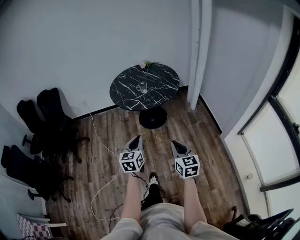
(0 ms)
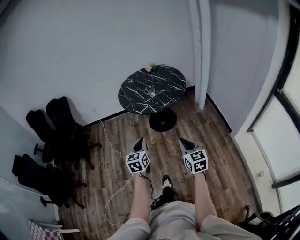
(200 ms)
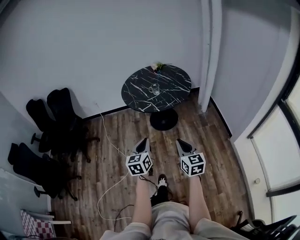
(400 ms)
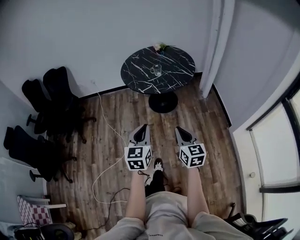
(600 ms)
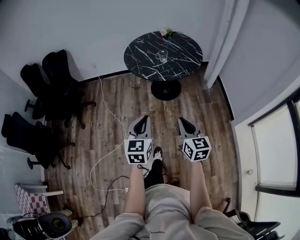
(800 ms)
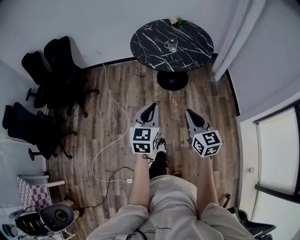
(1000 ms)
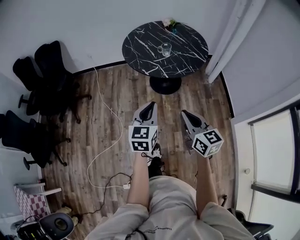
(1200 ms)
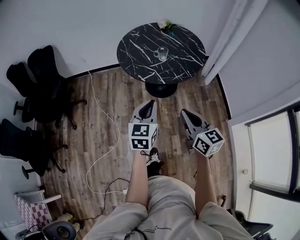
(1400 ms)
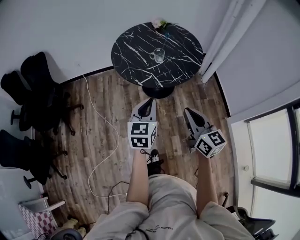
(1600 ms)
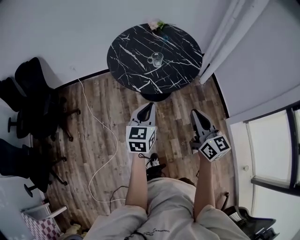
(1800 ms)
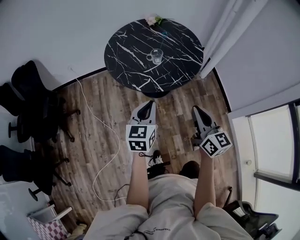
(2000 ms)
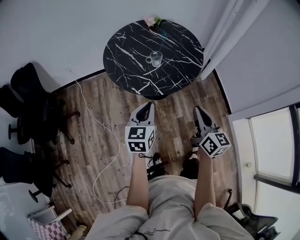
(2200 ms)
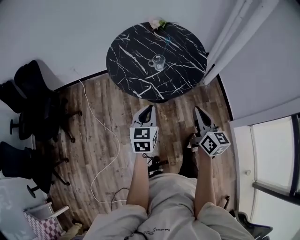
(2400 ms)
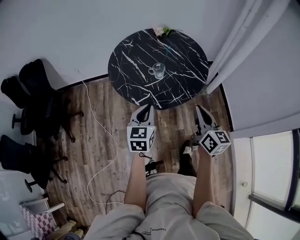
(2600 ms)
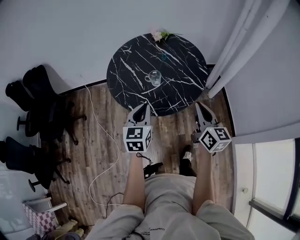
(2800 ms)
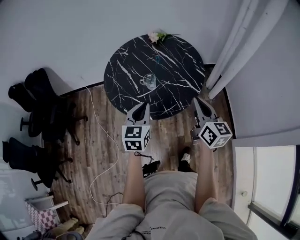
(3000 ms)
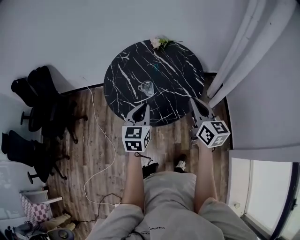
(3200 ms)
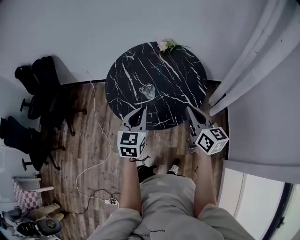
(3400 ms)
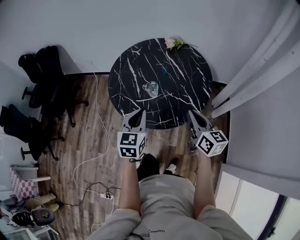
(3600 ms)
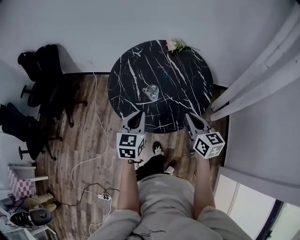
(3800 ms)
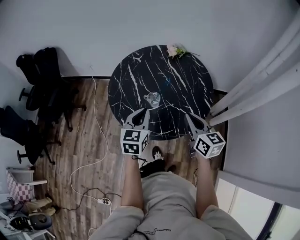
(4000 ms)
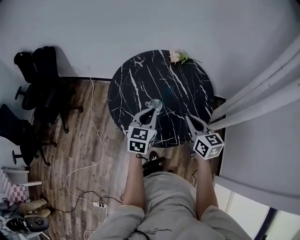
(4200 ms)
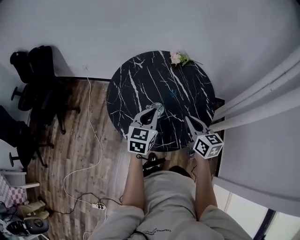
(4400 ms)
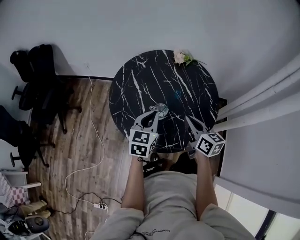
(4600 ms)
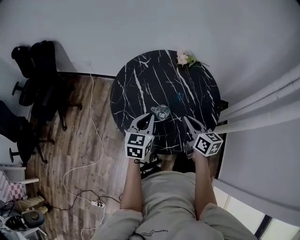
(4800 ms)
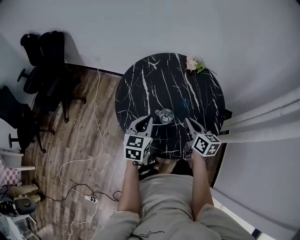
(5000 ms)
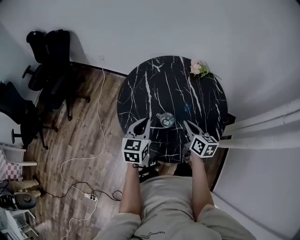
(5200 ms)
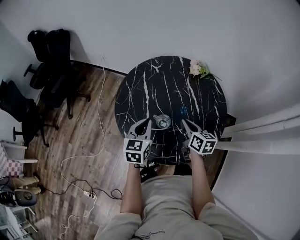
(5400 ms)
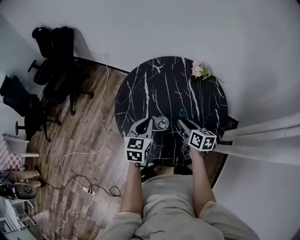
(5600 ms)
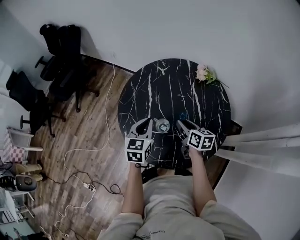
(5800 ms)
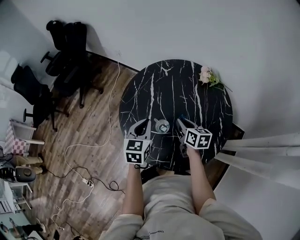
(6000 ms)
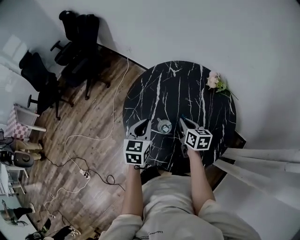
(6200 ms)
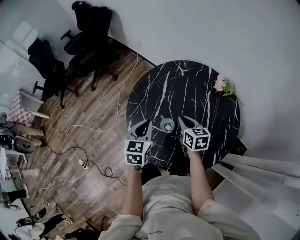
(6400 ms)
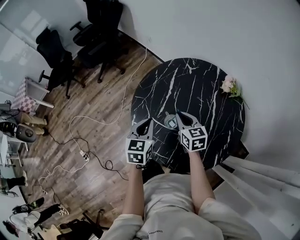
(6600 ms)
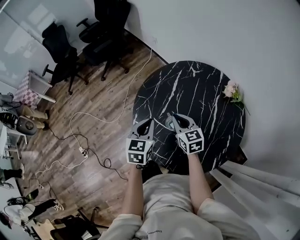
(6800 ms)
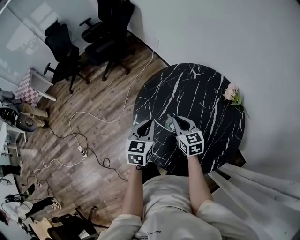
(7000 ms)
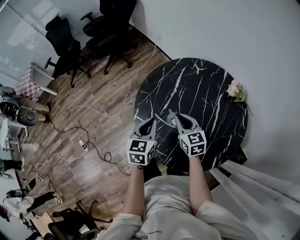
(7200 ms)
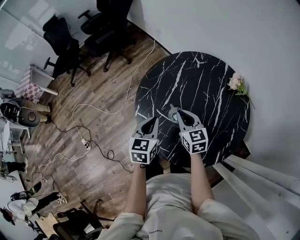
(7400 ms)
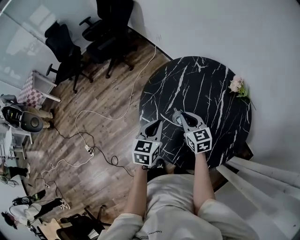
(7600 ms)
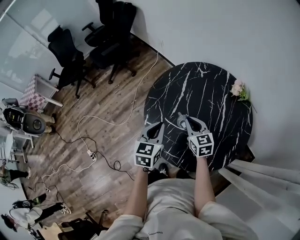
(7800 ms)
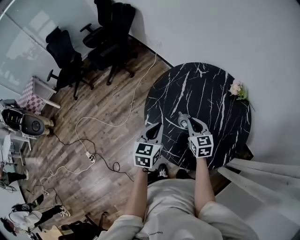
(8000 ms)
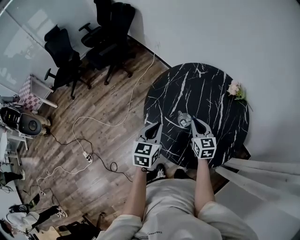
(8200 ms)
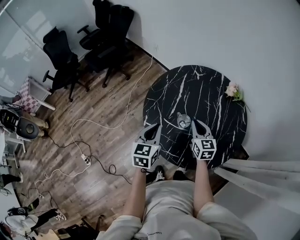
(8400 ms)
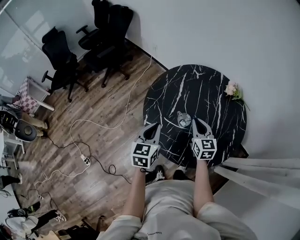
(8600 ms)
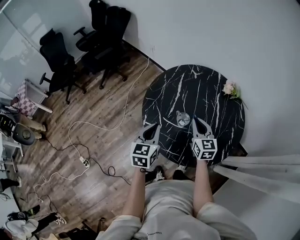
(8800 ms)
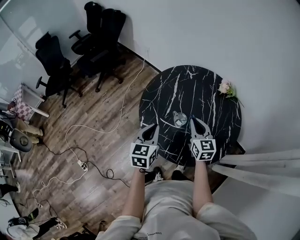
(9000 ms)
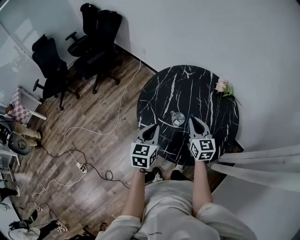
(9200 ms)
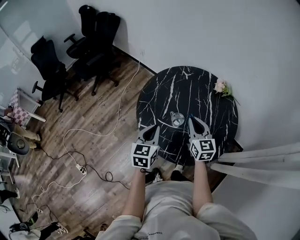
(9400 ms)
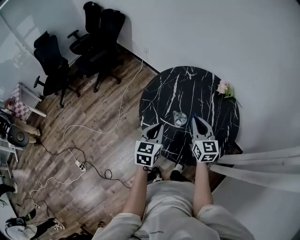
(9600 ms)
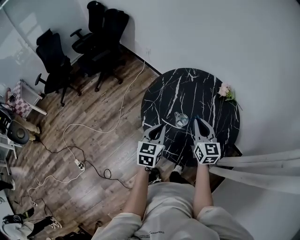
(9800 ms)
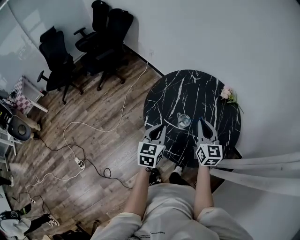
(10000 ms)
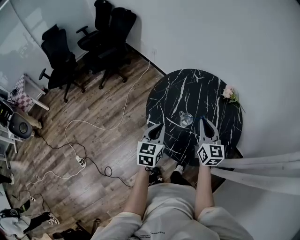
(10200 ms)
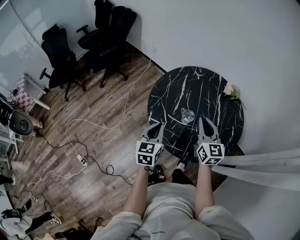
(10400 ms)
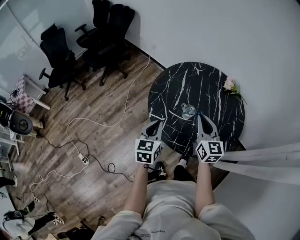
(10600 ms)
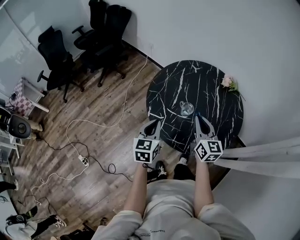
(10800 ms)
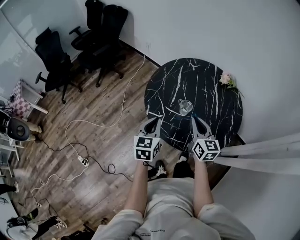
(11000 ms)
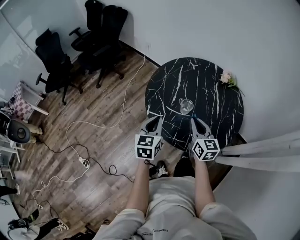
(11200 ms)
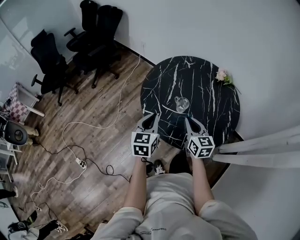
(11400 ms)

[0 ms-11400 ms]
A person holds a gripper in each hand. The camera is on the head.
0 ms to 1400 ms: Both grippers move forward, some 20 cm.
1400 ms to 2800 ms: The right gripper is displaced forward and to the right by approximately 35 cm. The left gripper is displaced forward by about 25 cm.
2800 ms to 4200 ms: The left gripper shifts some 20 cm forward and to the right. The right gripper shifts some 20 cm forward, and swivels approximately 30 degrees.
4200 ms to 5600 ms: The left gripper heads forward, covering approximately 10 cm, and turns by some 20 degrees; the right gripper shifts roughly 20 cm forward and downward, turns by about 30 degrees, and opens its fingers.
5600 ms to 7200 ms: The left gripper moves approximately 5 cm, and swivels about 30 degrees. Meanwhile the right gripper ends up approximately 10 cm from where it was, rolls counterclockwise, seen from behind, by roughly 40 degrees, and closes.
7200 ms to 8600 ms: The right gripper shifts by some 5 cm, and rotates roughly 20 degrees; the left gripper heads to the left, covering roughly 5 cm.
8600 ms to 10000 ms: The right gripper heads upward, covering approximately 10 cm.
10000 ms to 11400 ms: The right gripper travels downward and backward by some 10 cm. Meanwhile the left gripper ends up roughly 5 cm from where it was.

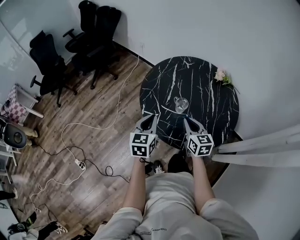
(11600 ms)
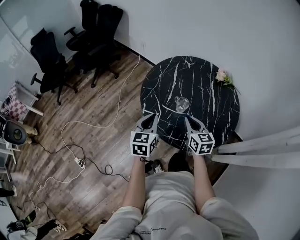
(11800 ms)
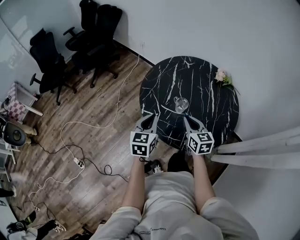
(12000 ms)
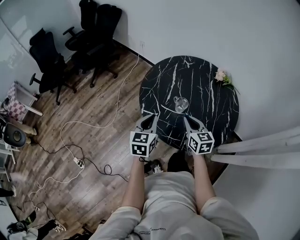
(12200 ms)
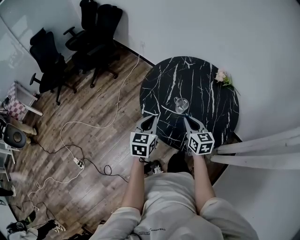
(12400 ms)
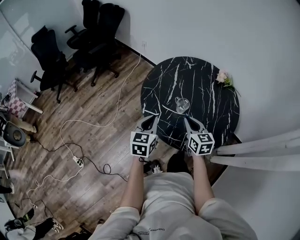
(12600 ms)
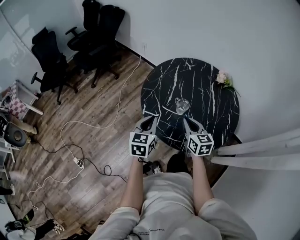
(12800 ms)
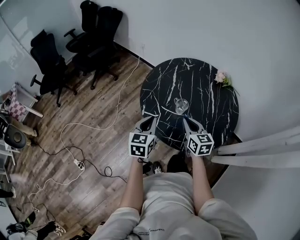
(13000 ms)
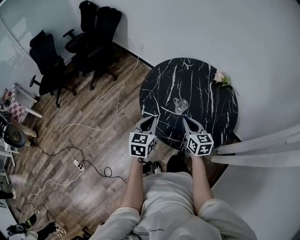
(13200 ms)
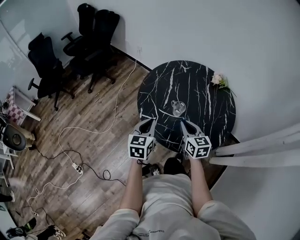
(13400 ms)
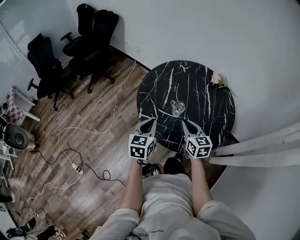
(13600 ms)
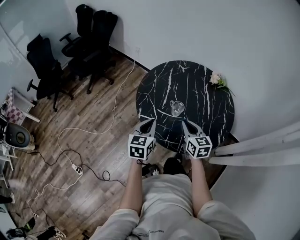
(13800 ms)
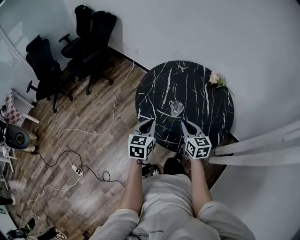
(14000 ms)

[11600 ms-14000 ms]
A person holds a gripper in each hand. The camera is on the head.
11600 ms to 12800 ms: The two grippers keep their place.
12800 ms to 14000 ms: The grippers move only a little.

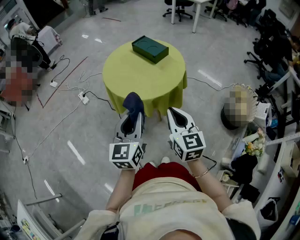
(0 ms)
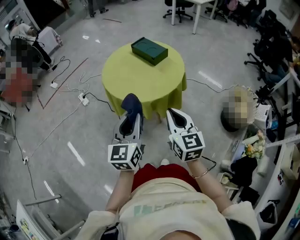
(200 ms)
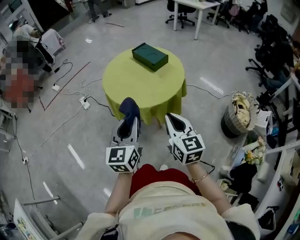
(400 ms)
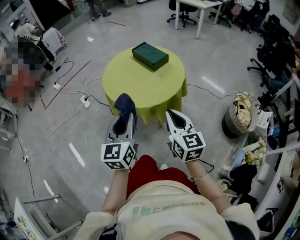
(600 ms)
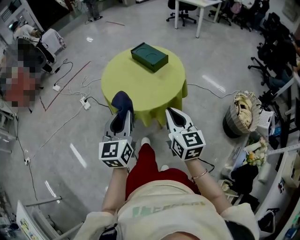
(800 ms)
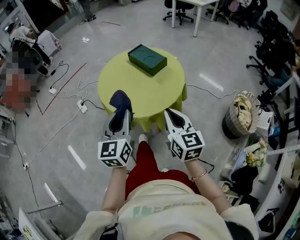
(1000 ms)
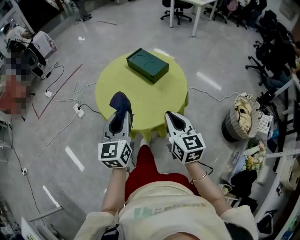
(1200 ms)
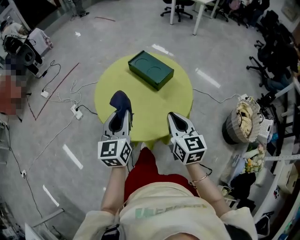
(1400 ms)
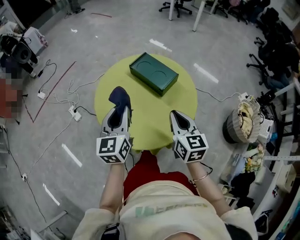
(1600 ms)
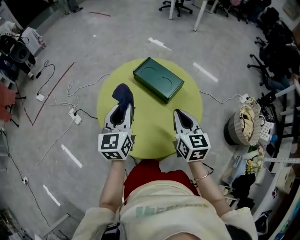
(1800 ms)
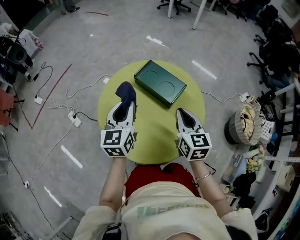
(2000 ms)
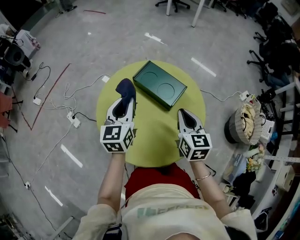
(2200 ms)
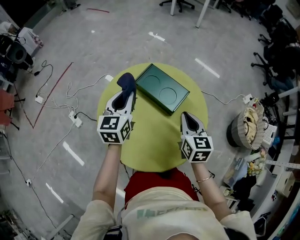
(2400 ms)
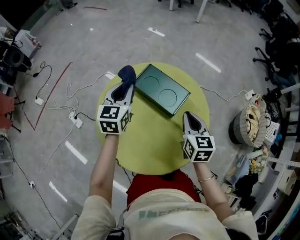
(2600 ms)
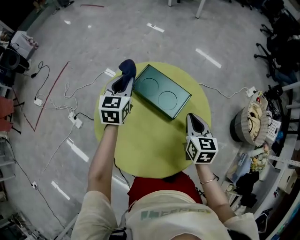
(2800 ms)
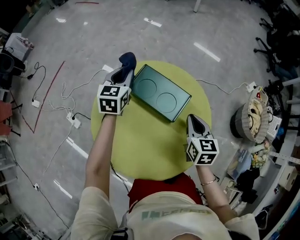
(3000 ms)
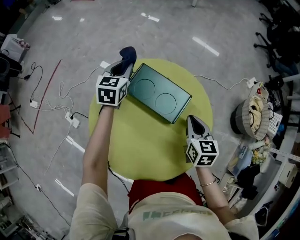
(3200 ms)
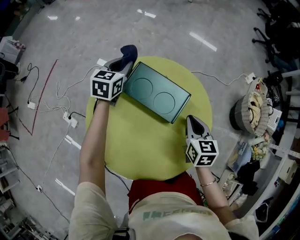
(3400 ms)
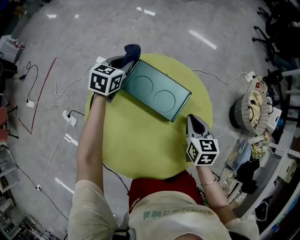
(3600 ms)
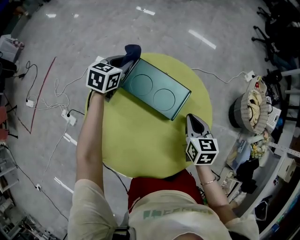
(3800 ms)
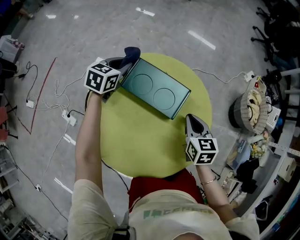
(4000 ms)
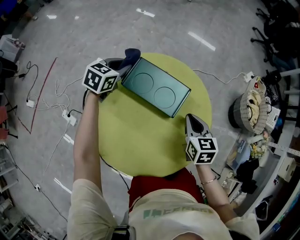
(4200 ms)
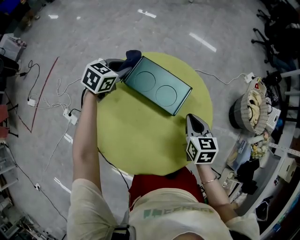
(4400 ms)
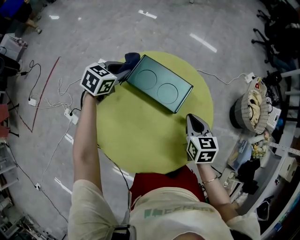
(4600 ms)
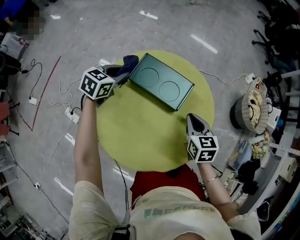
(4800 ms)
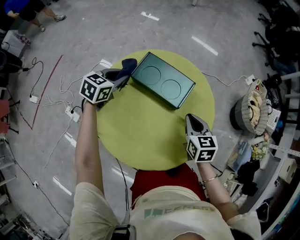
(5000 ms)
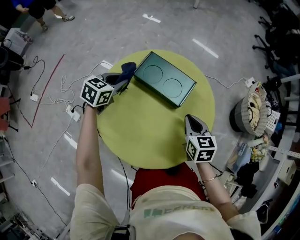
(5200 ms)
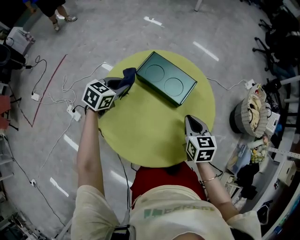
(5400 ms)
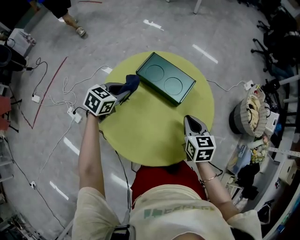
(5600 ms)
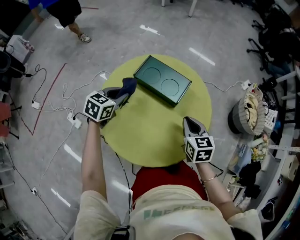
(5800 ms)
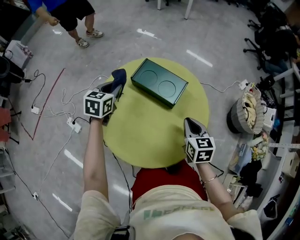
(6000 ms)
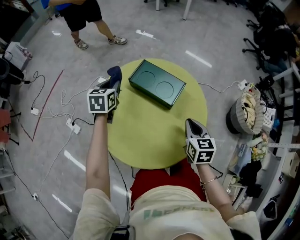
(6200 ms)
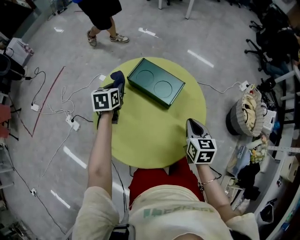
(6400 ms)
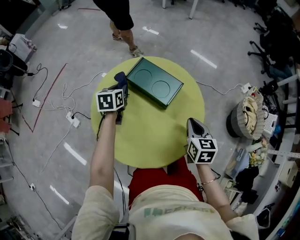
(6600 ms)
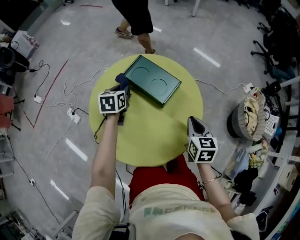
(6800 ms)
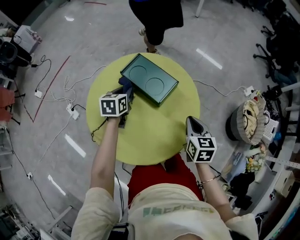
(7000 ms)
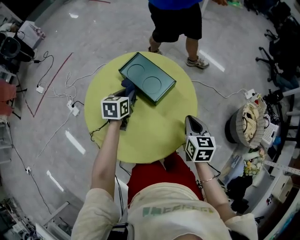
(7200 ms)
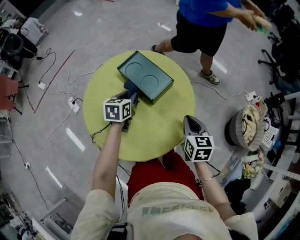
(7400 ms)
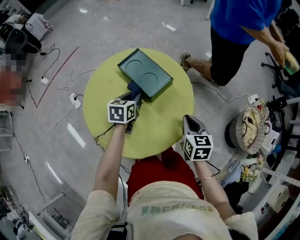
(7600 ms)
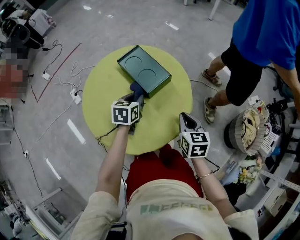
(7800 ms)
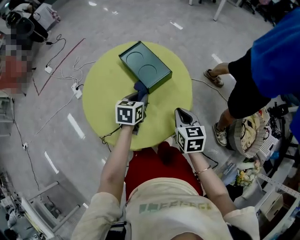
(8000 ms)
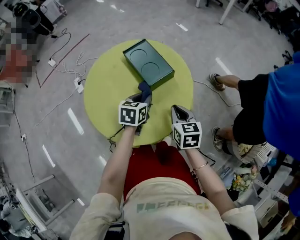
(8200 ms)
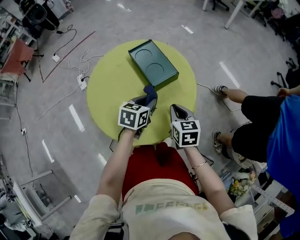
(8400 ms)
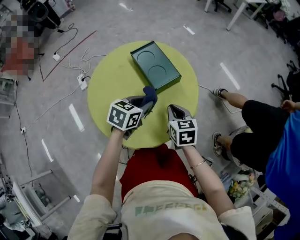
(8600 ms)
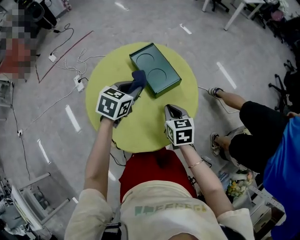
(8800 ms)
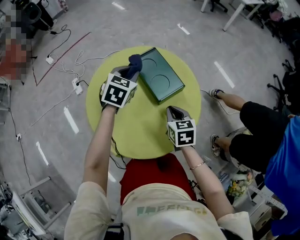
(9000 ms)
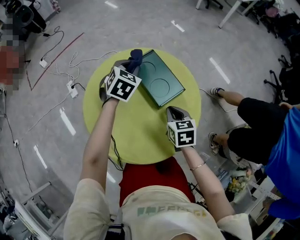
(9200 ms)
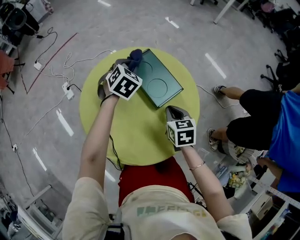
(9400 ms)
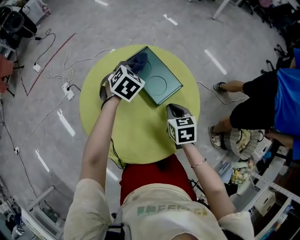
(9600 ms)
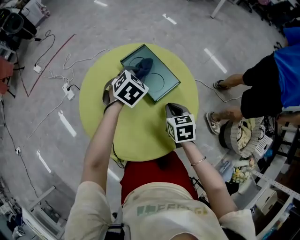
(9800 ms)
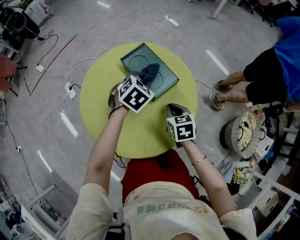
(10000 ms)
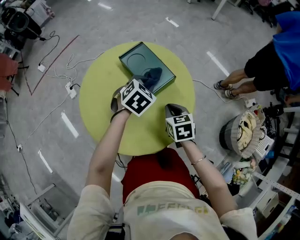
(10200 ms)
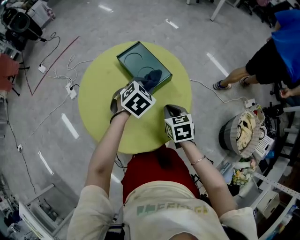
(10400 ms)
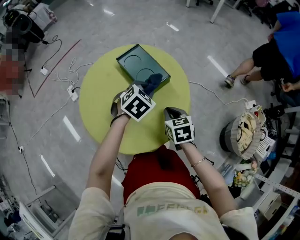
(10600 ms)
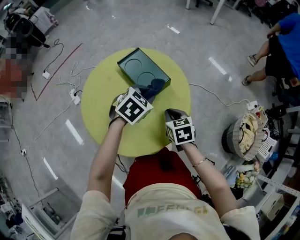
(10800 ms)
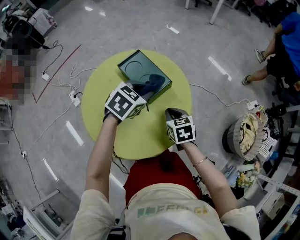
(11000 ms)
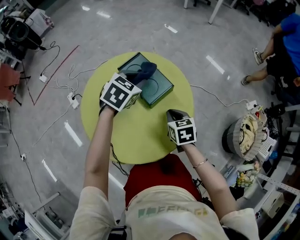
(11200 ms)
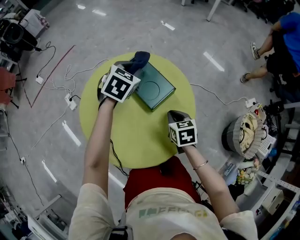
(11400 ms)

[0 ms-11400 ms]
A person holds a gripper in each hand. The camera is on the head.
0 ms to 1400 ms: Both grippers move forward, approximately 30 cm.
1400 ms to 2800 ms: The right gripper travels forward by roughly 25 cm, and turns by roughly 20 degrees; the left gripper travels forward by roughly 40 cm, and turns by approximately 20 degrees.
2800 ms to 4200 ms: The left gripper is displaced downward and forward by some 10 cm, and rotates approximately 30 degrees. The right gripper shifts approximately 5 cm downward.
4200 ms to 5600 ms: The right gripper moves backward, approximately 10 cm; the left gripper travels backward by roughly 20 cm.
5600 ms to 7200 ms: Both grippers travel together to the right, some 15 cm. The left gripper rotates approximately 40 degrees.
7200 ms to 8600 ms: The right gripper is displaced to the left by roughly 5 cm, and turns by some 20 degrees. Meanwhile the left gripper travels backward and to the right by about 15 cm.
8600 ms to 10000 ms: The left gripper goes roughly 15 cm forward, and swivels approximately 30 degrees.
10000 ms to 11400 ms: The left gripper shifts approximately 10 cm forward and upward.
